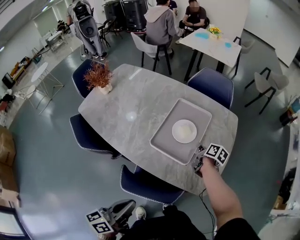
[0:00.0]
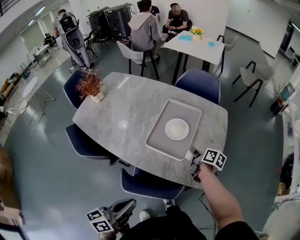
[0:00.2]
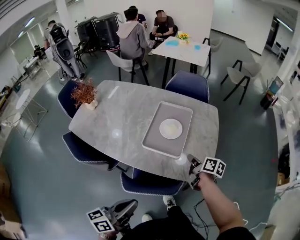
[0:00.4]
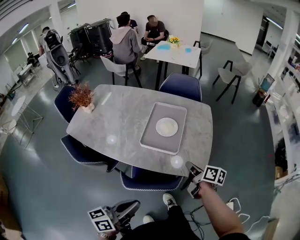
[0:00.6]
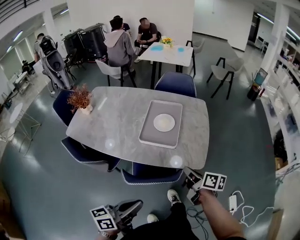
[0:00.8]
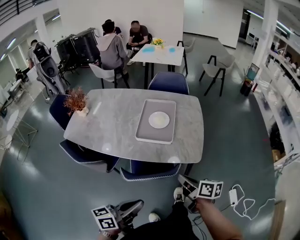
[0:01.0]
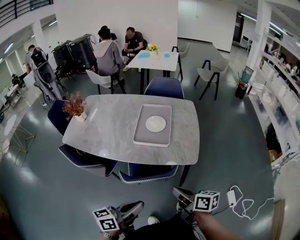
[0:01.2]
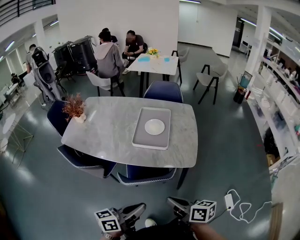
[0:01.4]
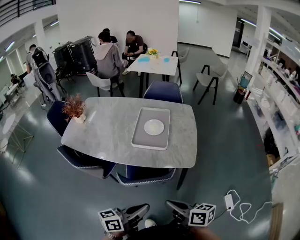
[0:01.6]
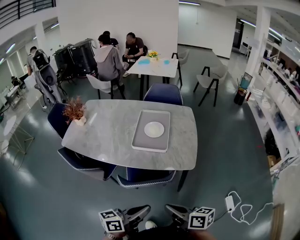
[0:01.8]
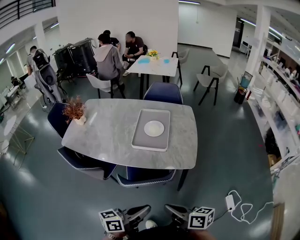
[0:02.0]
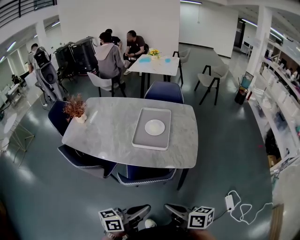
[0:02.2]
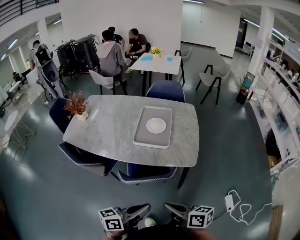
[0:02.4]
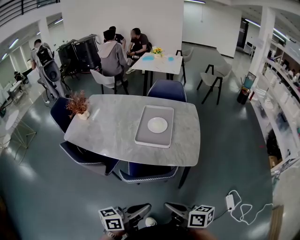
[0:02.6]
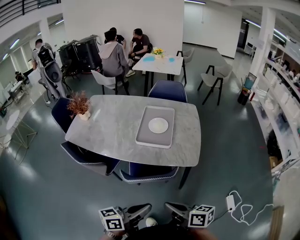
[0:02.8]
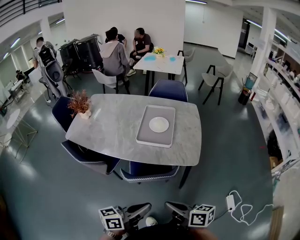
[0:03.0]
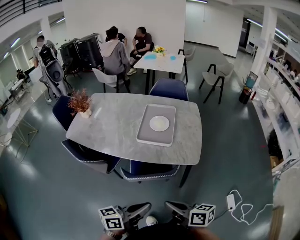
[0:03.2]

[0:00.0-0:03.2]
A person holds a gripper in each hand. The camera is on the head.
0.0 to 1.6 s: The left gripper ends up some 15 cm from where it was, and turns by approximately 40 degrees.

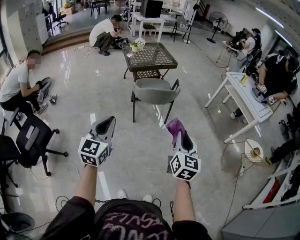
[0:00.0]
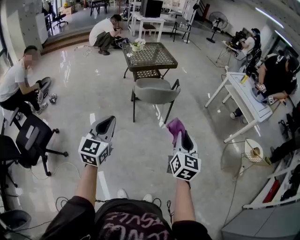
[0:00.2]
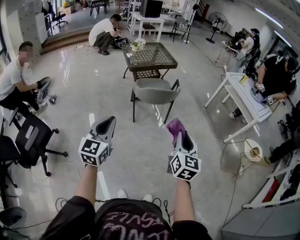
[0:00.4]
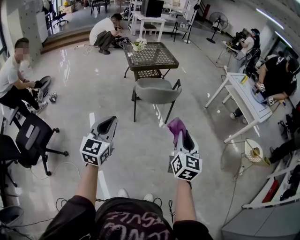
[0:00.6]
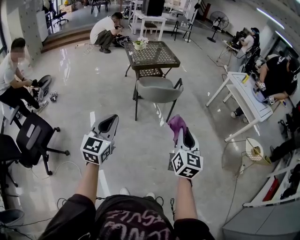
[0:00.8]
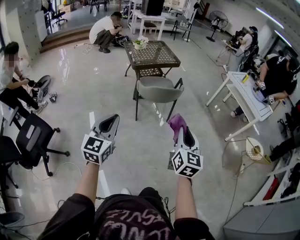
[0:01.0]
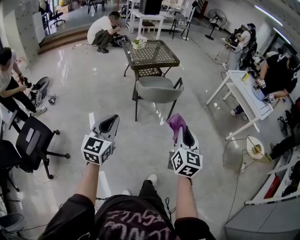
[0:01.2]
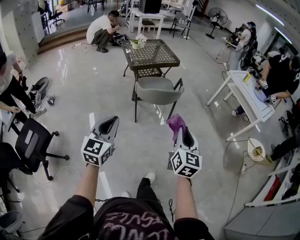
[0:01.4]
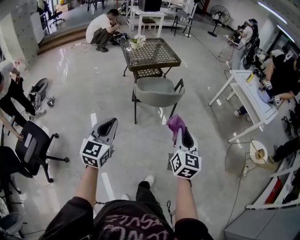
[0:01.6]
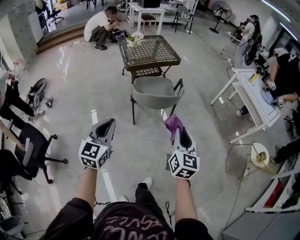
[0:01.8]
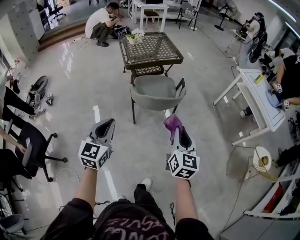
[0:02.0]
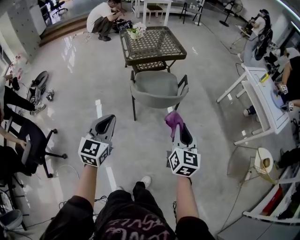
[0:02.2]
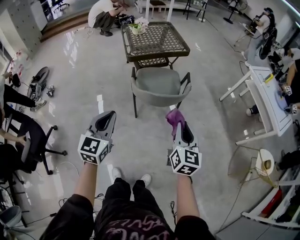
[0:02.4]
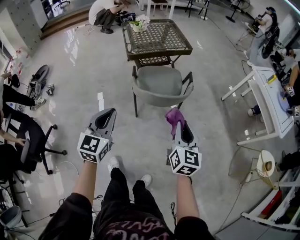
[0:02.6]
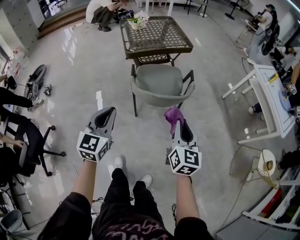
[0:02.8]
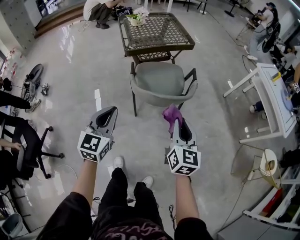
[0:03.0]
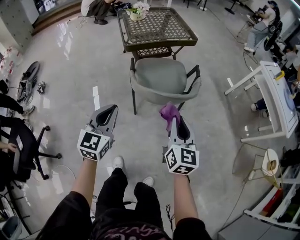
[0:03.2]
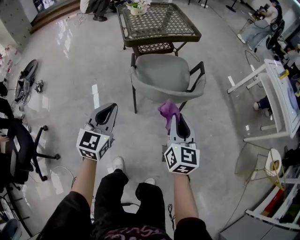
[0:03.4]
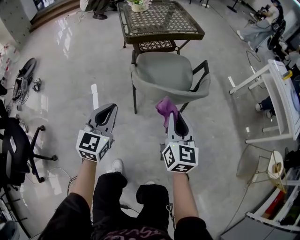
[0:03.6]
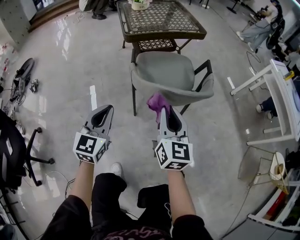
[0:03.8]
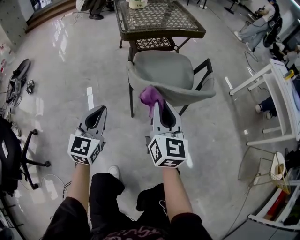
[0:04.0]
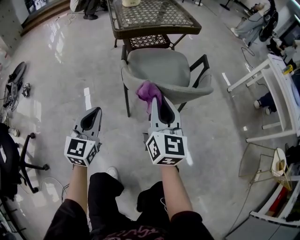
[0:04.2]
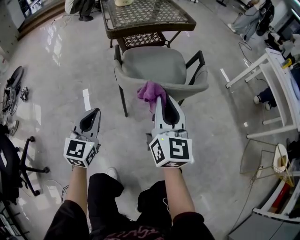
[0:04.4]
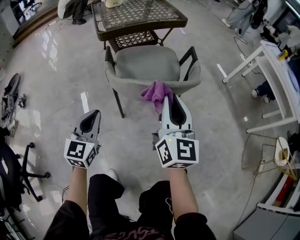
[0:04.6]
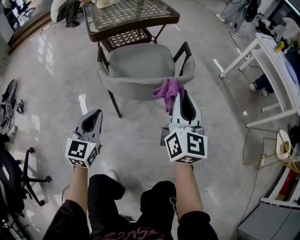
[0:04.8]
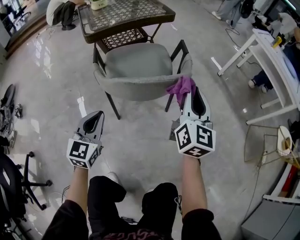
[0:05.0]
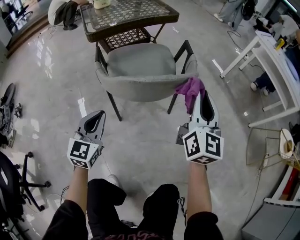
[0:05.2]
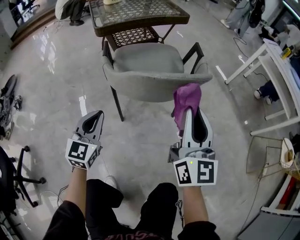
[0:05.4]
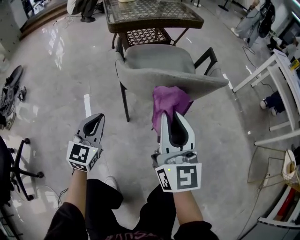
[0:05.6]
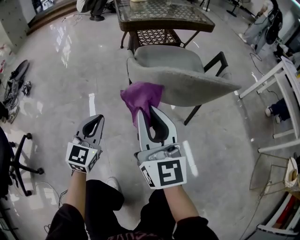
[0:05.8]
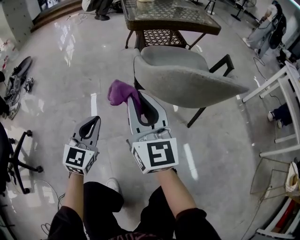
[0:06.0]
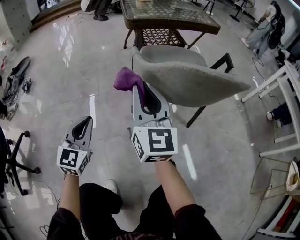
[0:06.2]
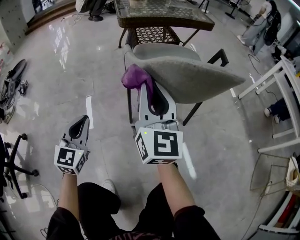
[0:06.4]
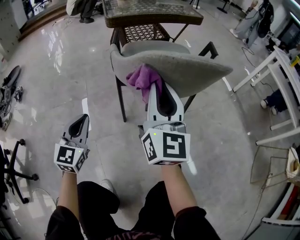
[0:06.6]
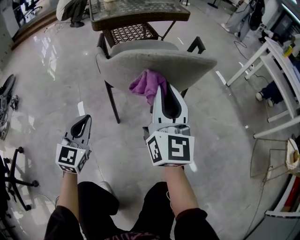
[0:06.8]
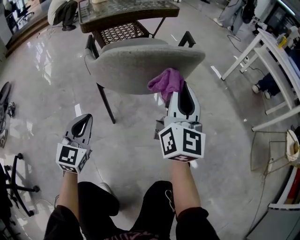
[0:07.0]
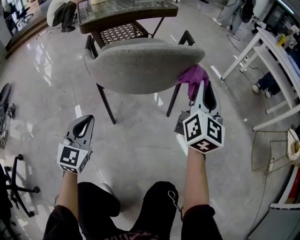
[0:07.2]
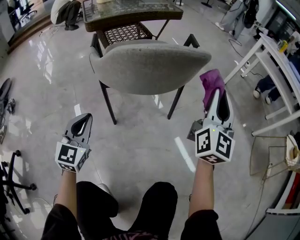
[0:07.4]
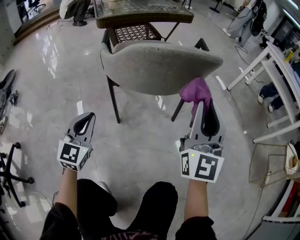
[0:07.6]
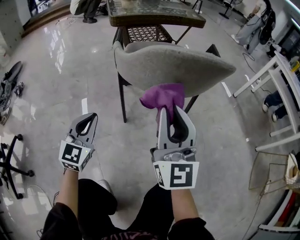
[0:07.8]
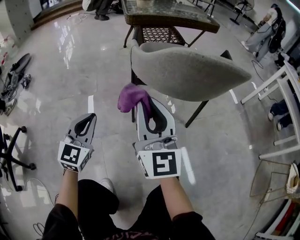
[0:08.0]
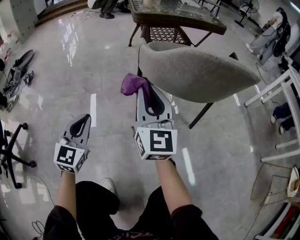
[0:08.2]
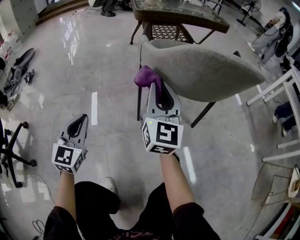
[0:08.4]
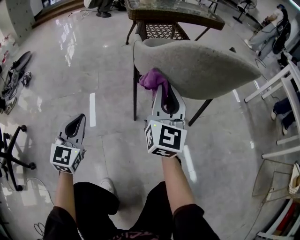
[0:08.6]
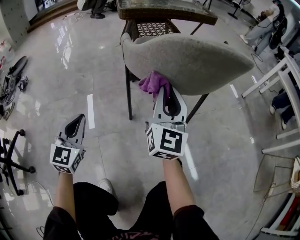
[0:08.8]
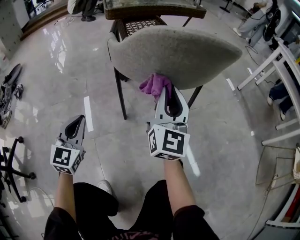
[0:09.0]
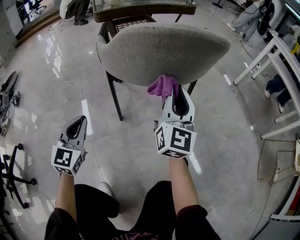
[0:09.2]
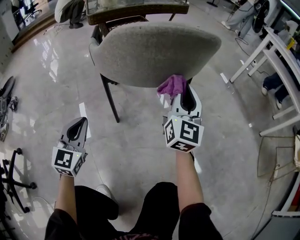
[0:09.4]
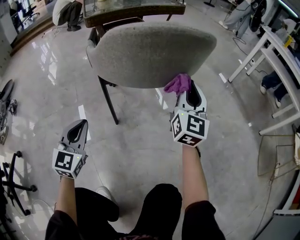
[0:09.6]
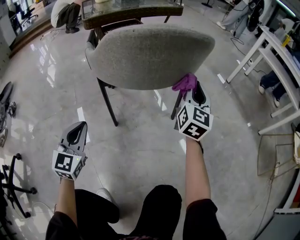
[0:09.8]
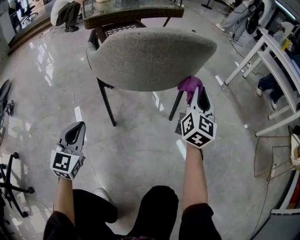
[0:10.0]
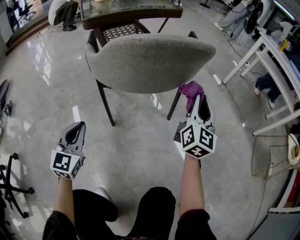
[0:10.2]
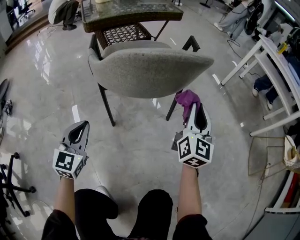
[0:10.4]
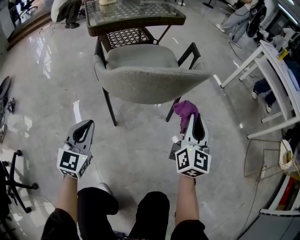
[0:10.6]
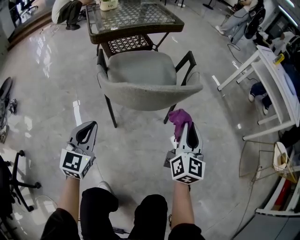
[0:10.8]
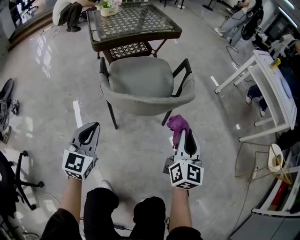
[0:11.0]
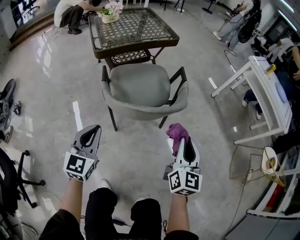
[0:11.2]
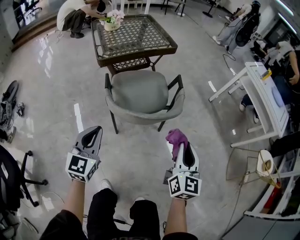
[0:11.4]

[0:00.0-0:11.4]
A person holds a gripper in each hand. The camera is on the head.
0.0 to 1.4 s: The right gripper travels forward and to the left by roughly 5 cm. The left gripper moves forward, approximately 5 cm.
1.4 to 2.8 s: The right gripper travels forward and downward by roughly 30 cm; the left gripper travels forward by approximately 30 cm.
2.8 to 4.2 s: The right gripper is displaced downward, to the left and forward by approximately 30 cm; the left gripper travels downward by some 30 cm.
4.2 to 5.6 s: The left gripper heads downward, covering about 10 cm. The right gripper travels downward by about 5 cm, and goes to the right and returns, approximately 20 cm each way.
5.6 to 7.2 s: The right gripper moves about 25 cm, and swivels about 30 degrees.
7.2 to 8.6 s: The left gripper changes place by roughly 20 cm. Meanwhile the right gripper moves roughly 30 cm, and rotates roughly 30 degrees.
8.6 to 10.0 s: The right gripper shifts about 30 cm to the right, and turns by approximately 30 degrees. Meanwhile the left gripper goes approximately 10 cm to the right.
10.0 to 11.4 s: The left gripper is displaced upward by roughly 35 cm. The right gripper moves upward and backward, some 30 cm.

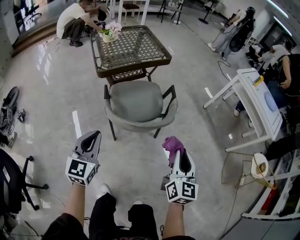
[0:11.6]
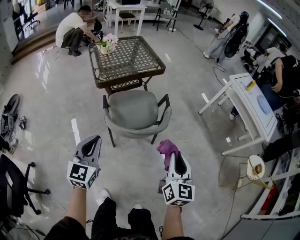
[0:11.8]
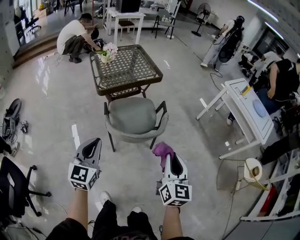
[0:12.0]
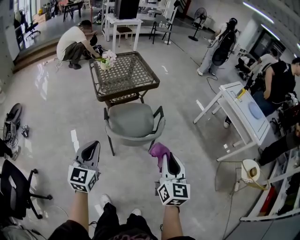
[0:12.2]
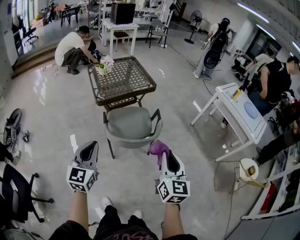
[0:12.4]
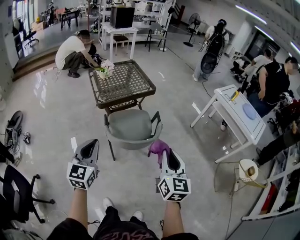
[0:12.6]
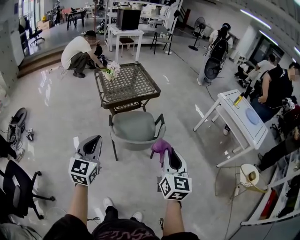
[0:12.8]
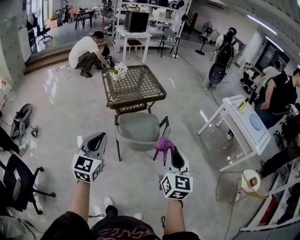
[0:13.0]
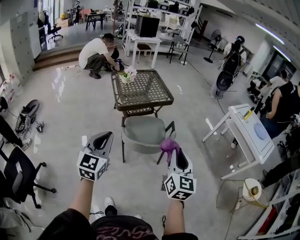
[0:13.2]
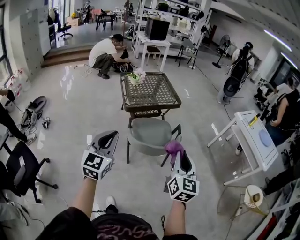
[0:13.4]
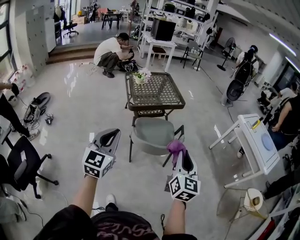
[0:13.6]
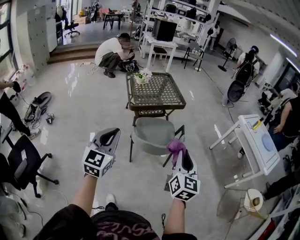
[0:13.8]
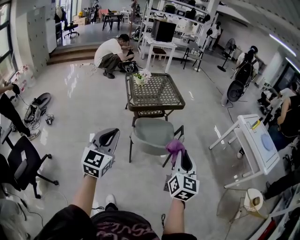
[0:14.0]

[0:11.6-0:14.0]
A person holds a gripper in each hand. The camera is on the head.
11.6 to 12.8 s: Both grippers travel together upward, about 20 cm.
12.8 to 14.0 s: The left gripper heads upward and backward, covering roughly 10 cm.

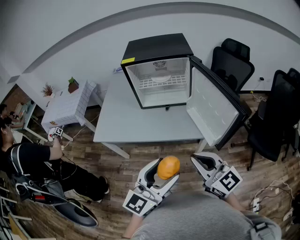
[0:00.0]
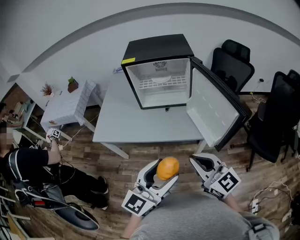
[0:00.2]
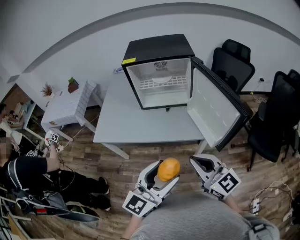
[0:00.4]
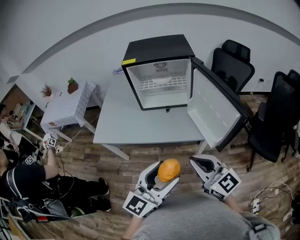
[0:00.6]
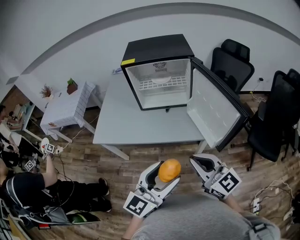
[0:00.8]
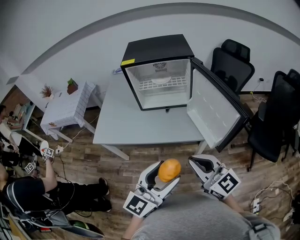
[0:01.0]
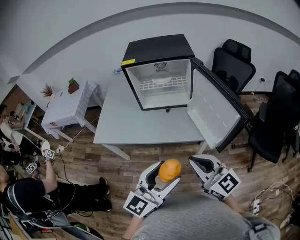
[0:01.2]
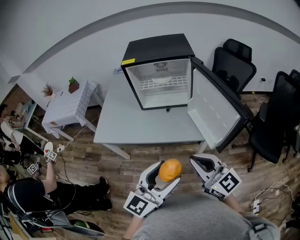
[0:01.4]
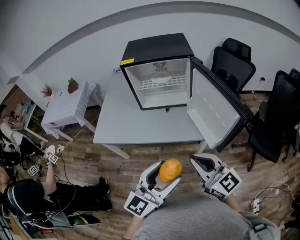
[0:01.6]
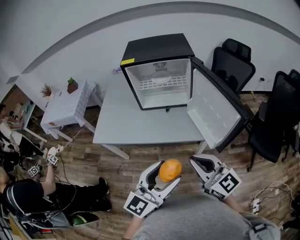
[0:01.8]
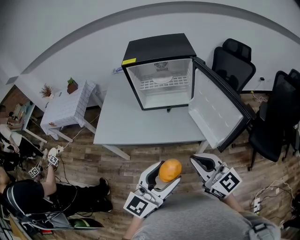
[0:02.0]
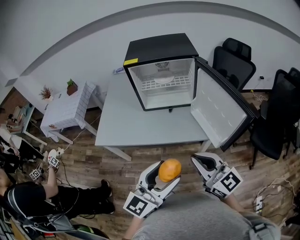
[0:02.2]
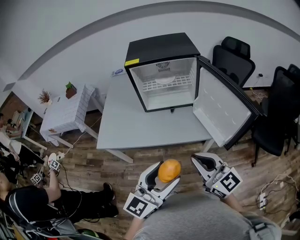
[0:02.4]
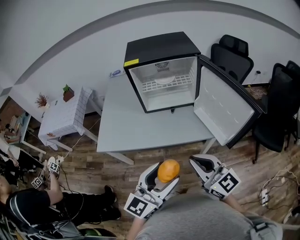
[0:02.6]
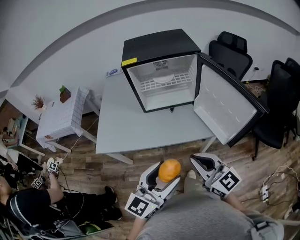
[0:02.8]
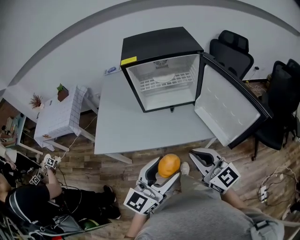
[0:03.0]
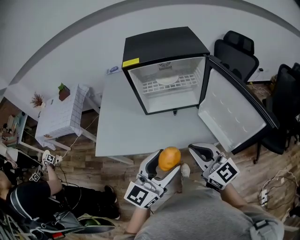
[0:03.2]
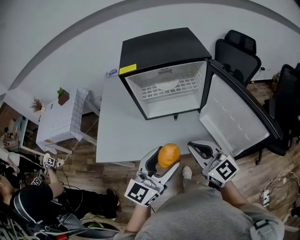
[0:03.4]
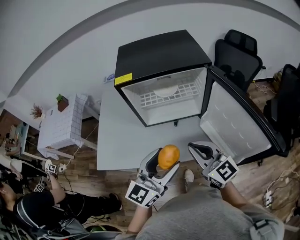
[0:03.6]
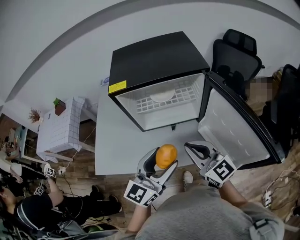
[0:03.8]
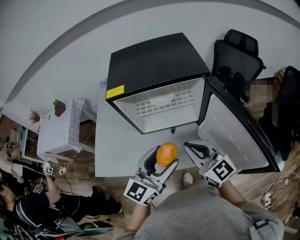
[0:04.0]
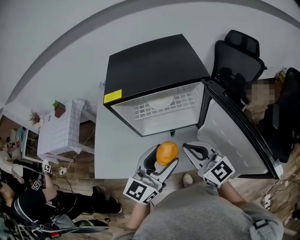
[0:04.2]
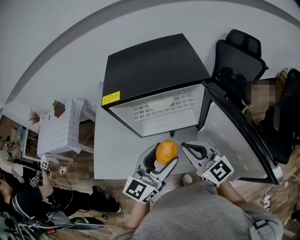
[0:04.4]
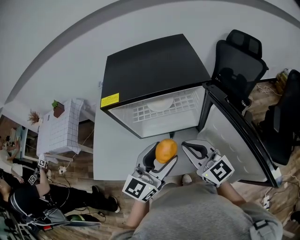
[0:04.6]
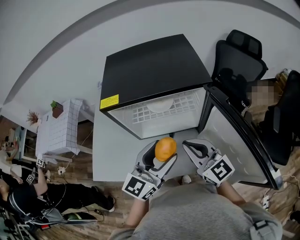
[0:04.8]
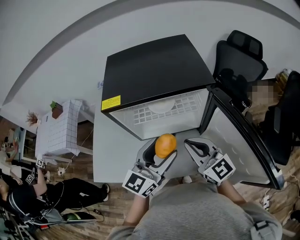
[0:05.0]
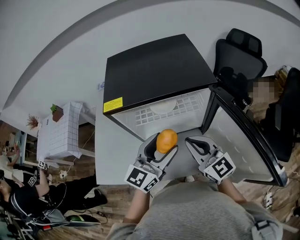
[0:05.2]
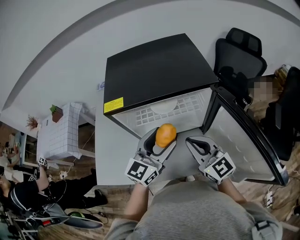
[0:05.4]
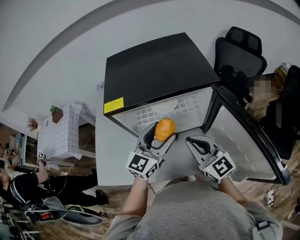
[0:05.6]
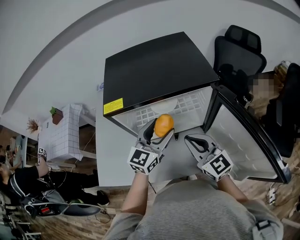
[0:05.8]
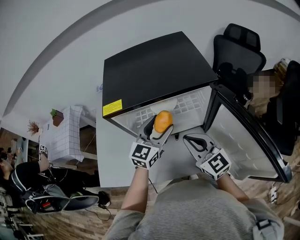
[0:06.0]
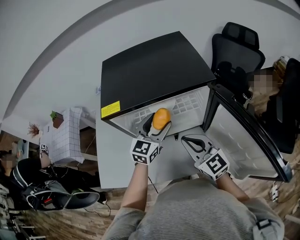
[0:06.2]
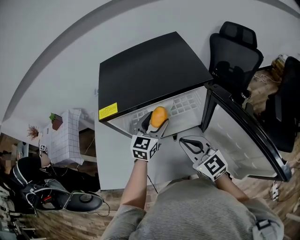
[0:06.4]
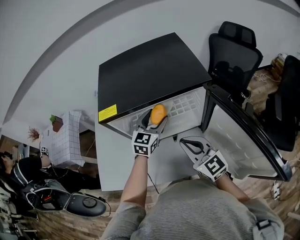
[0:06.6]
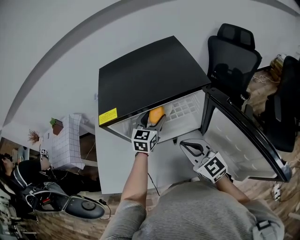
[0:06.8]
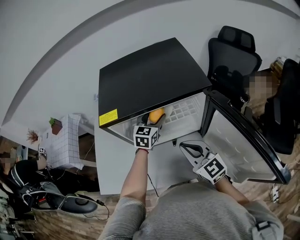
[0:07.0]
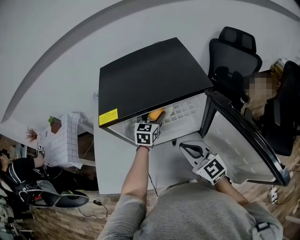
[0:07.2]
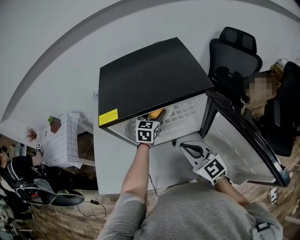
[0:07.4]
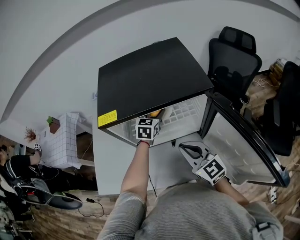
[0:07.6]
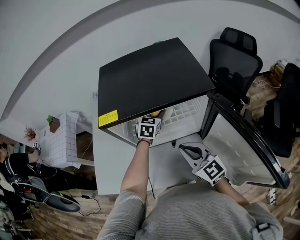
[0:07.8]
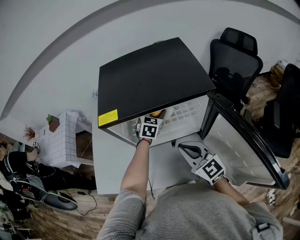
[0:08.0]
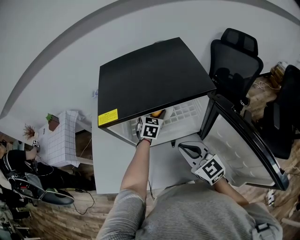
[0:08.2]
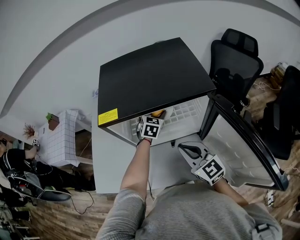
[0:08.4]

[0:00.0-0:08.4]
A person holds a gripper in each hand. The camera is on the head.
0.0 to 1.4 s: The grippers move only a little.
1.4 to 2.8 s: Both grippers move to the left, approximately 10 cm.
2.8 to 4.2 s: The two grippers go about 25 cm forward.
4.2 to 5.6 s: The right gripper moves forward, roughly 5 cm. The left gripper heads forward, covering about 15 cm.
5.6 to 7.0 s: The left gripper travels forward and downward by approximately 20 cm, and rotates roughly 20 degrees.
7.0 to 8.4 s: The left gripper moves roughly 5 cm.
